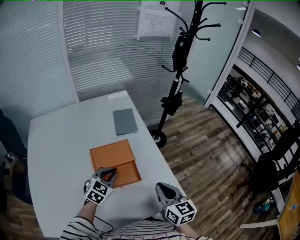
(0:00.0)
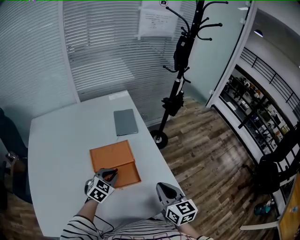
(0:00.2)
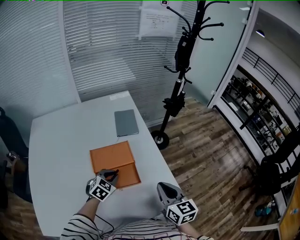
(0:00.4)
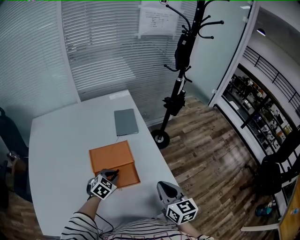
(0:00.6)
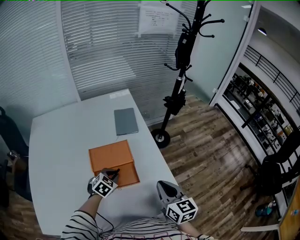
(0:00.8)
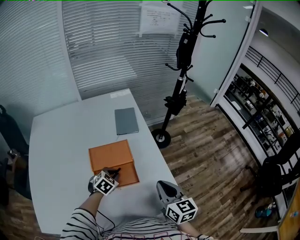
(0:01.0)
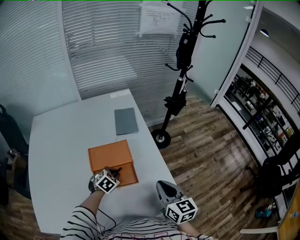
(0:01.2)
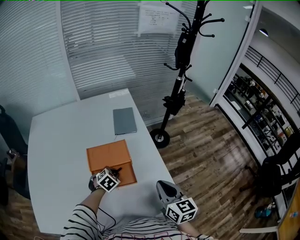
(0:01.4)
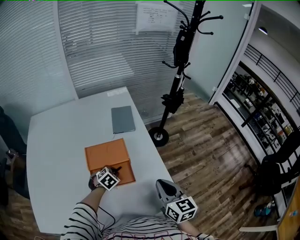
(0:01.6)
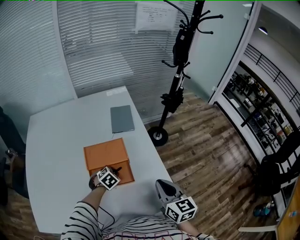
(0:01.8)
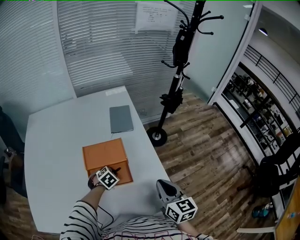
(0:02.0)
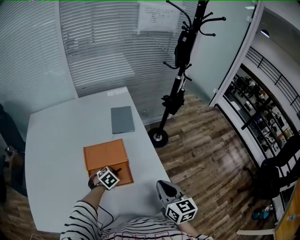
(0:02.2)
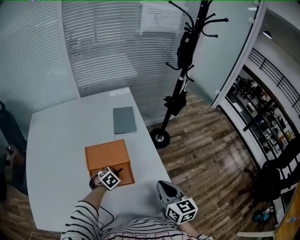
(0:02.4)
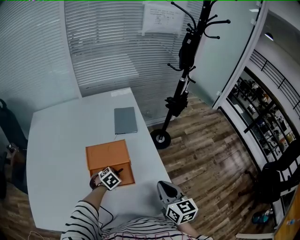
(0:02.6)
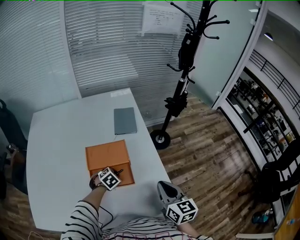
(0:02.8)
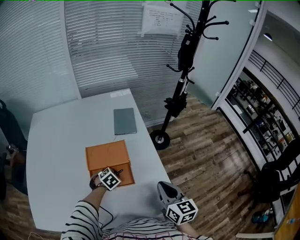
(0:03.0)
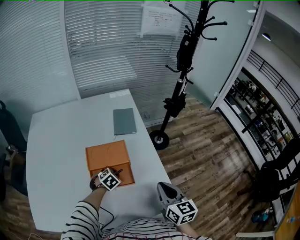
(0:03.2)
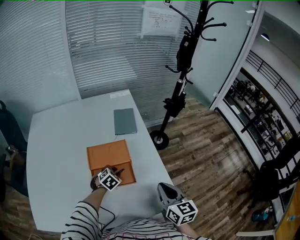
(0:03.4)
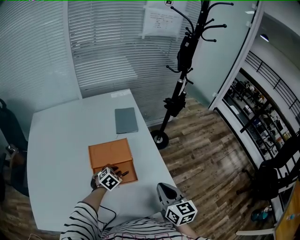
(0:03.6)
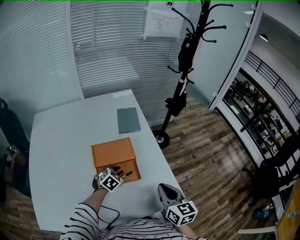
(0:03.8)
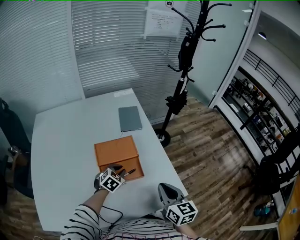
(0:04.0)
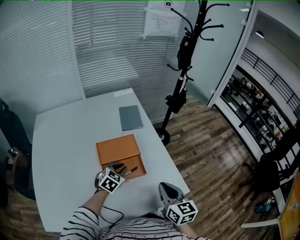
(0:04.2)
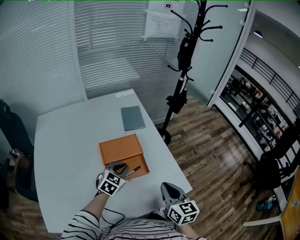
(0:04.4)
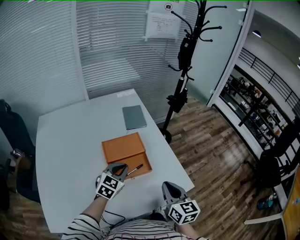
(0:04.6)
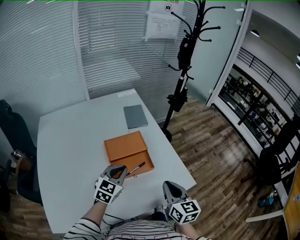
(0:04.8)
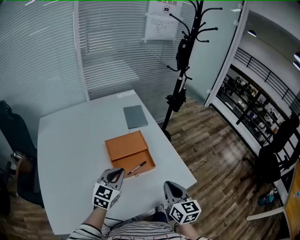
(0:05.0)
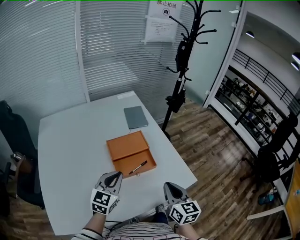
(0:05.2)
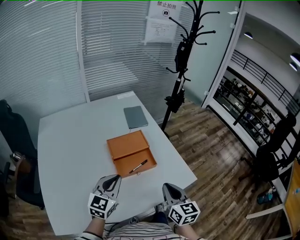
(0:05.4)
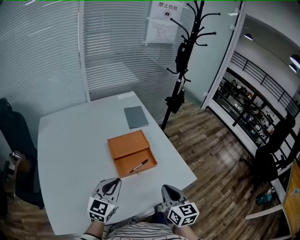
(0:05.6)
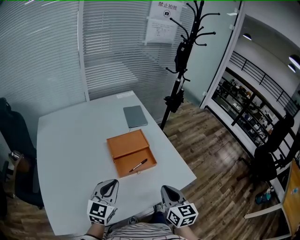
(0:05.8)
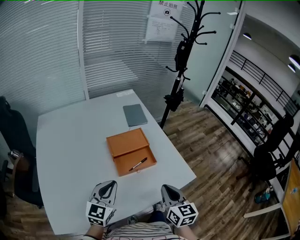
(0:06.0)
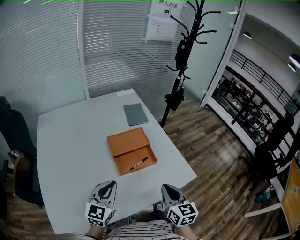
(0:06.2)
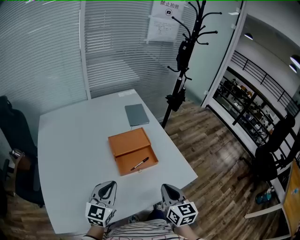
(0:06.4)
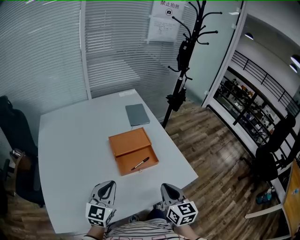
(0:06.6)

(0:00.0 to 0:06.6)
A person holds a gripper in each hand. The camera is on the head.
0:00.0 - 0:01.6: The right gripper shifts by roughly 5 cm, while the left gripper shifts approximately 15 cm downward, and turns by some 30 degrees.
0:01.6 - 0:03.2: There are only small adjustments of the grippers.
0:03.2 - 0:05.0: The right gripper heads backward and to the left, covering roughly 15 cm, while the left gripper shifts some 25 cm upward and backward, and angles its fingers upward, by approximately 50 degrees.
0:05.0 - 0:06.6: The left gripper travels backward and to the left by roughly 10 cm. Meanwhile the right gripper moves roughly 5 cm.

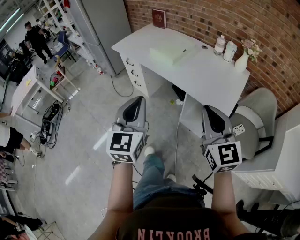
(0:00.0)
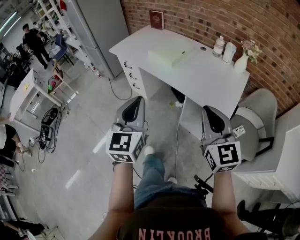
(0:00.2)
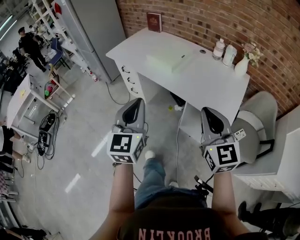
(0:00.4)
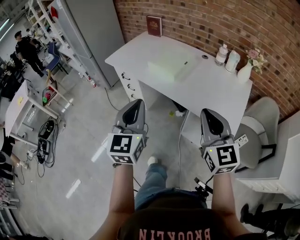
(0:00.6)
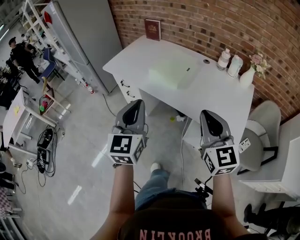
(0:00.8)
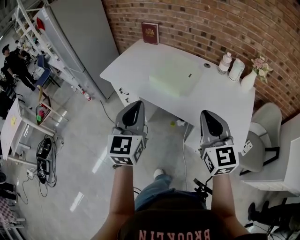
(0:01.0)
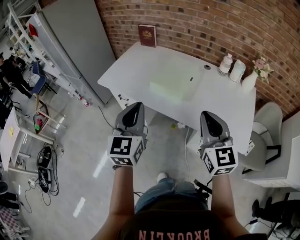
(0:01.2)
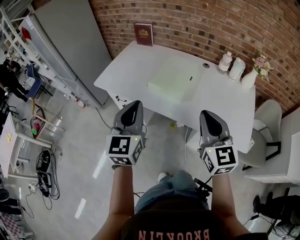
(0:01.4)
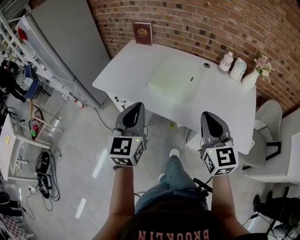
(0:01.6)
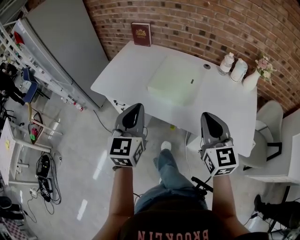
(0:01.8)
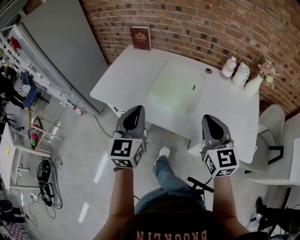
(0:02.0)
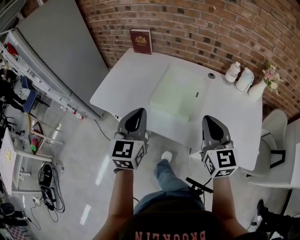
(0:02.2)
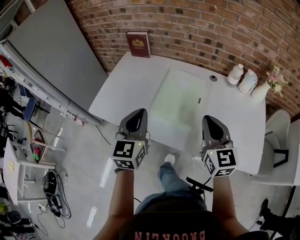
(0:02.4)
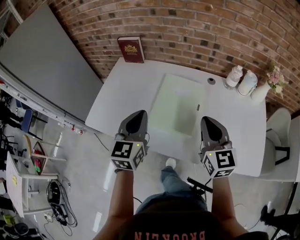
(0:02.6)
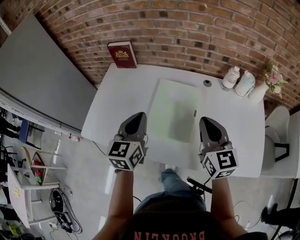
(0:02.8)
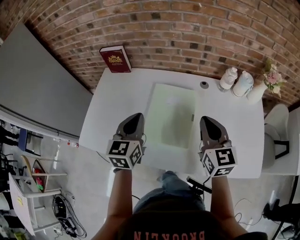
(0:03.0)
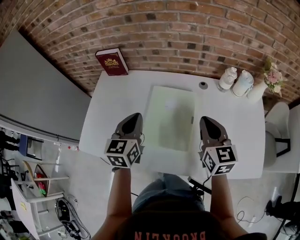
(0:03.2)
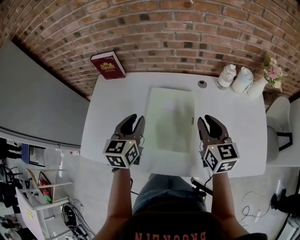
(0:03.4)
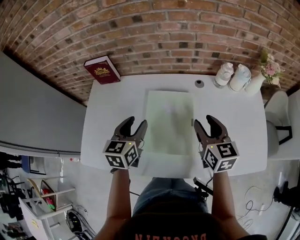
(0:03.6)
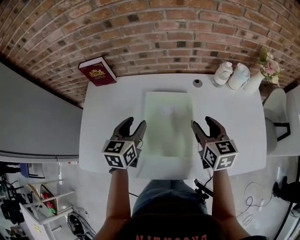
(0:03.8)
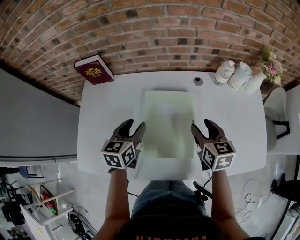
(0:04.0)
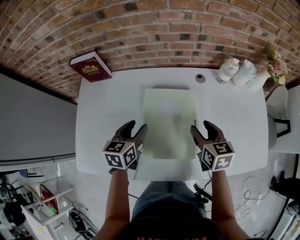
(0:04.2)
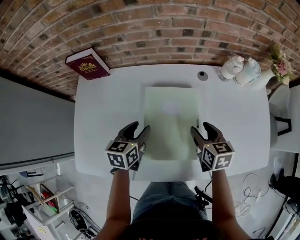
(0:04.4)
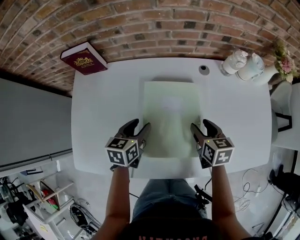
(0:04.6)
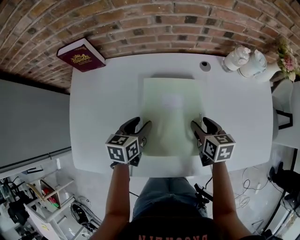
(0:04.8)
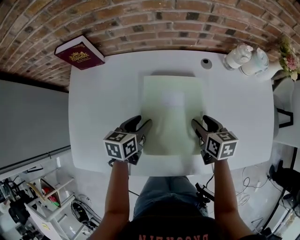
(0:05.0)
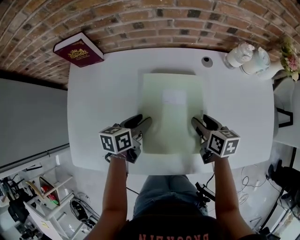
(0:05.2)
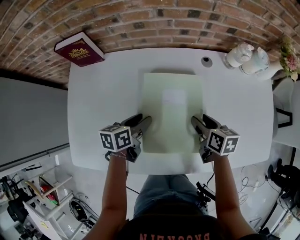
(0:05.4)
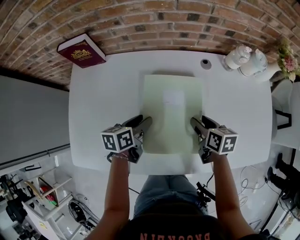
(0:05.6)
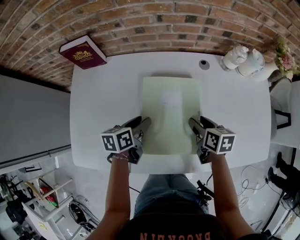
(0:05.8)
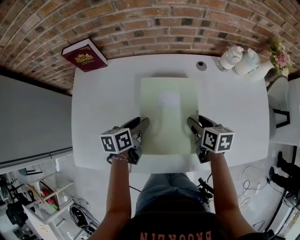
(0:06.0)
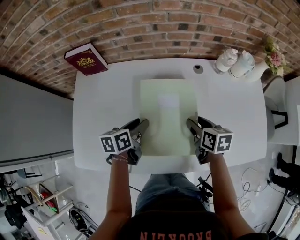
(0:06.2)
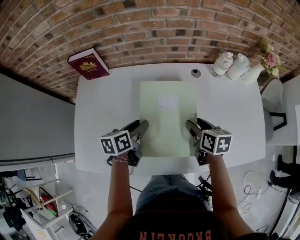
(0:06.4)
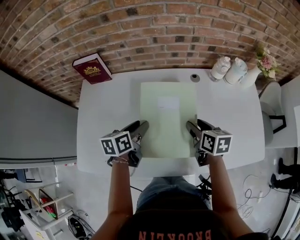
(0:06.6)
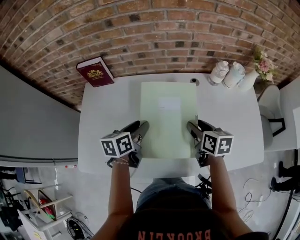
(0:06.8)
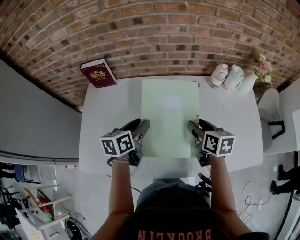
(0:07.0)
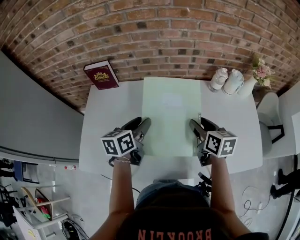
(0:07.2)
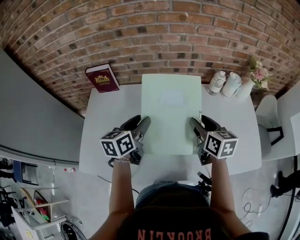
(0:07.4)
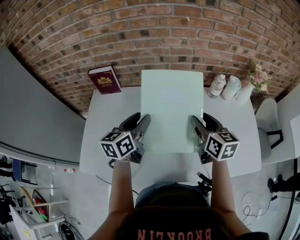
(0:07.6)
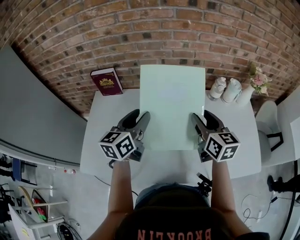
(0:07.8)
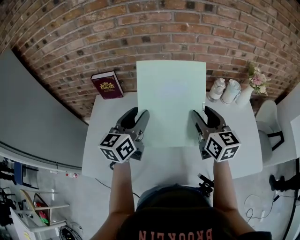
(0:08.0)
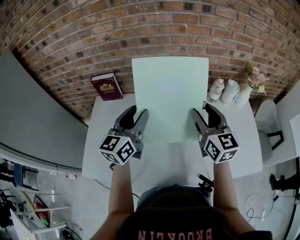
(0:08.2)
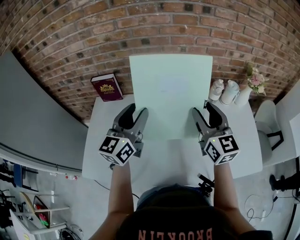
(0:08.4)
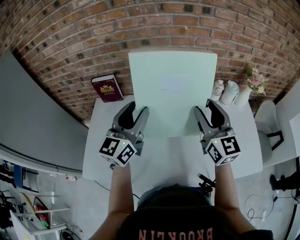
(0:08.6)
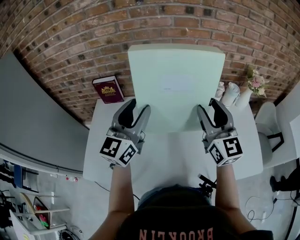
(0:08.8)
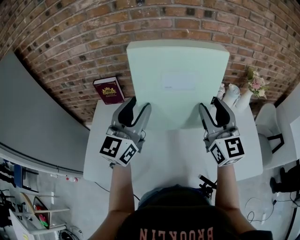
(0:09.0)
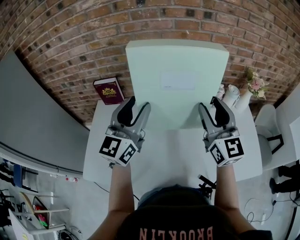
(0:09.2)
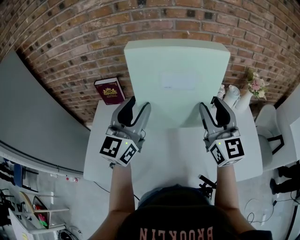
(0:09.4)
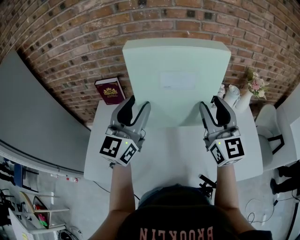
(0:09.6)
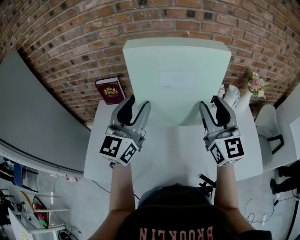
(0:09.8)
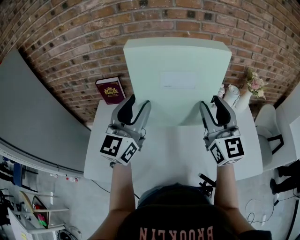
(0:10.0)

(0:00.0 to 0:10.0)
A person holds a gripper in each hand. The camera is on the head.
0:00.0 - 0:01.4: The two grippers go some 35 cm forward and to the left.
0:01.4 - 0:02.8: Both grippers travel together forward, some 30 cm. The left gripper changes its angle by roughly 20 degrees.
0:02.8 - 0:04.2: Both grippers travel together downward and forward, approximately 20 cm. The left gripper changes its angle by some 30 degrees, and opens up; the right gripper changes its angle by about 30 degrees, and opens.
0:04.2 - 0:05.8: Both grippers move downward, some 10 cm. The right gripper turns by roughly 20 degrees. Meanwhile the left gripper turns by some 30 degrees.
0:05.8 - 0:07.2: The two grippers go roughly 15 cm upward.
0:07.2 - 0:08.6: The grippers both shift upward by some 15 cm. The right gripper points its fingers some 30 degrees further upward. The left gripper tilts its fingers about 30 degrees upward.
0:08.6 - 0:10.0: The grippers both shift upward by some 5 cm.

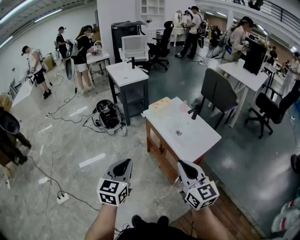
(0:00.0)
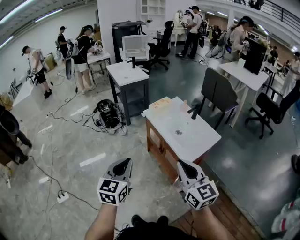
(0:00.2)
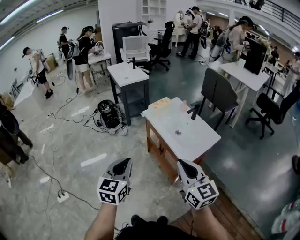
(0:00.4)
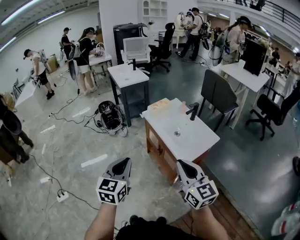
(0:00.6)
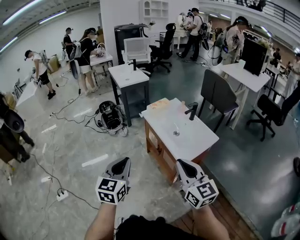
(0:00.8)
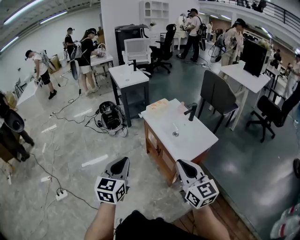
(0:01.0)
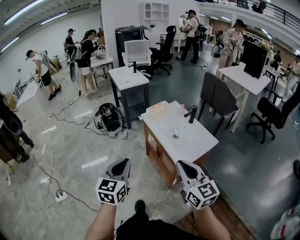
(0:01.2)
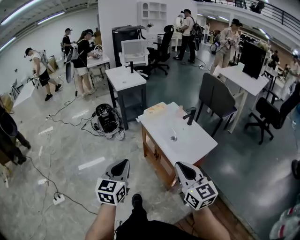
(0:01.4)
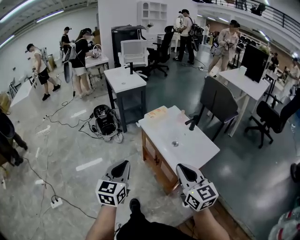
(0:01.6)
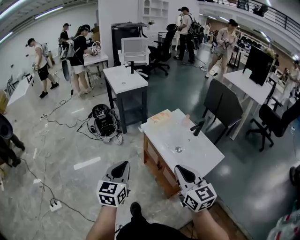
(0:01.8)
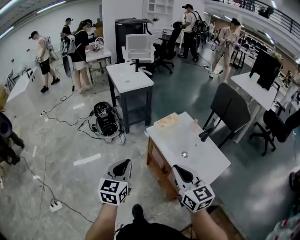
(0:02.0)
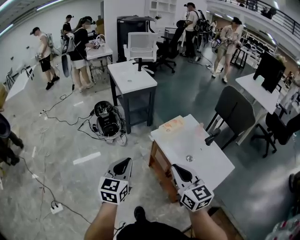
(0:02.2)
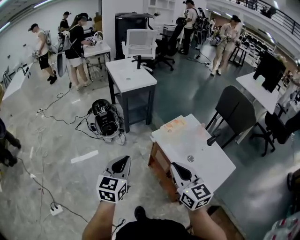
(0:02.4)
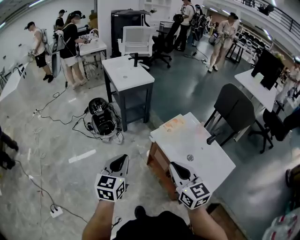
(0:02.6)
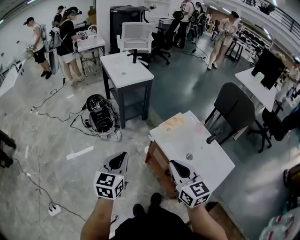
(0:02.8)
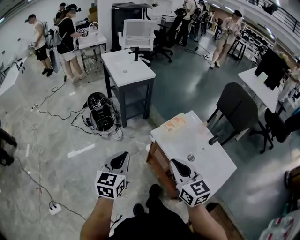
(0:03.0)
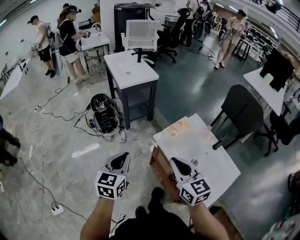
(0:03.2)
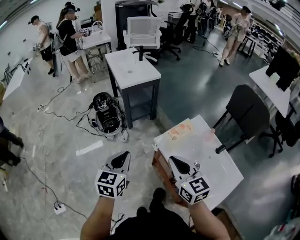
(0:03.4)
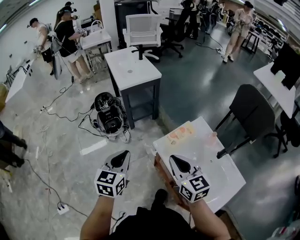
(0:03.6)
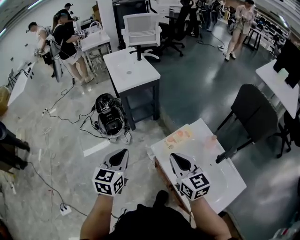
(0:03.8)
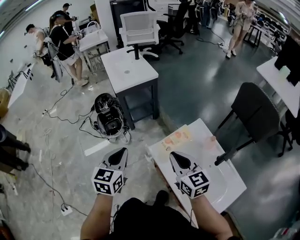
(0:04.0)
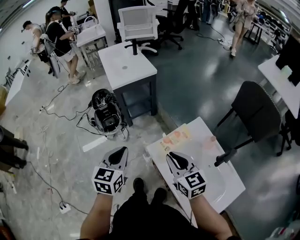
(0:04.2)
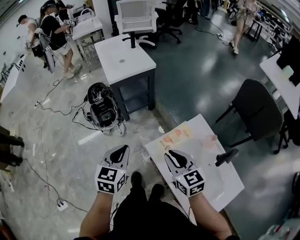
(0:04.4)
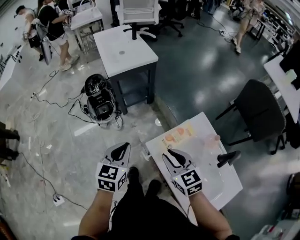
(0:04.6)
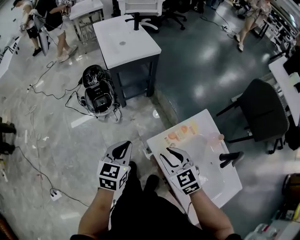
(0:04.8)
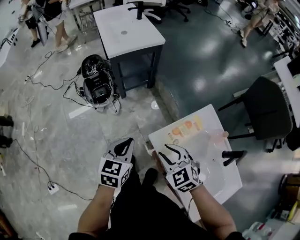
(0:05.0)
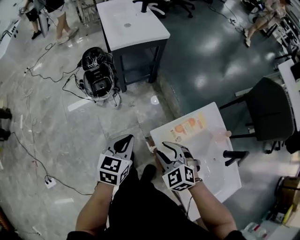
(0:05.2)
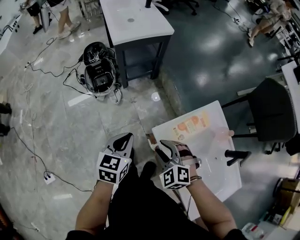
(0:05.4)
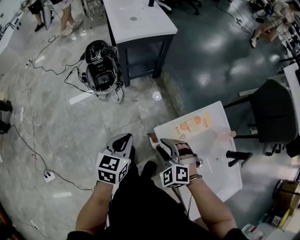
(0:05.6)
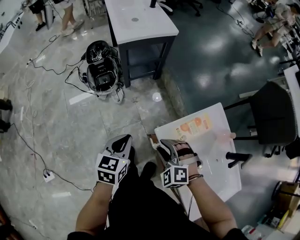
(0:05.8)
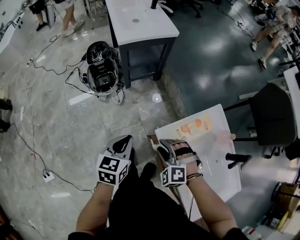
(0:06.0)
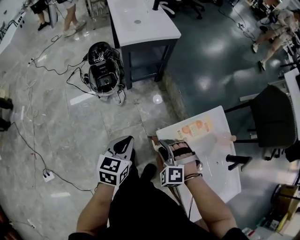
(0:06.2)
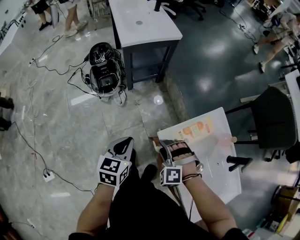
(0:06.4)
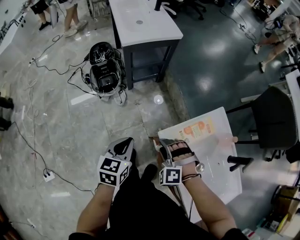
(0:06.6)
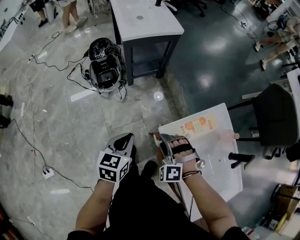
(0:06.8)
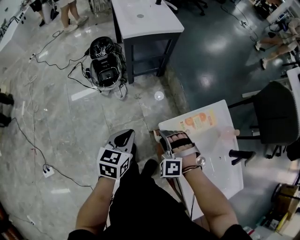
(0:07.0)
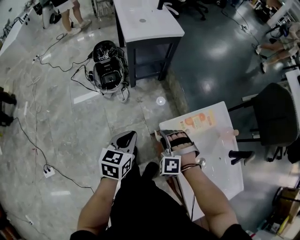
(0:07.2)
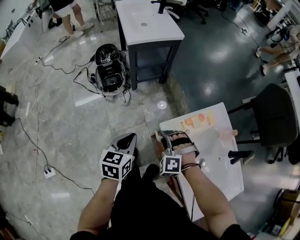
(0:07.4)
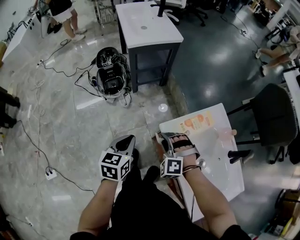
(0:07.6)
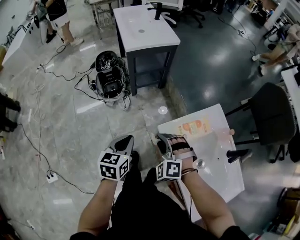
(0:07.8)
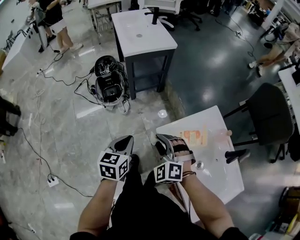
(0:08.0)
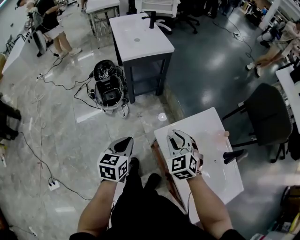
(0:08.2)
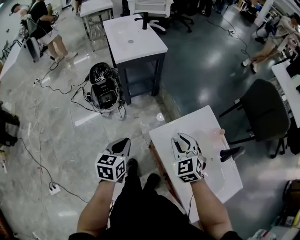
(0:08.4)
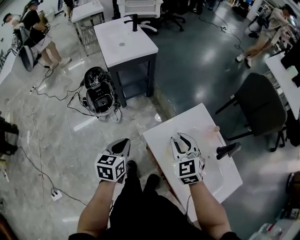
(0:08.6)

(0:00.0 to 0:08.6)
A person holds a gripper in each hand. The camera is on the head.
0:00.0 - 0:01.4: Both grippers move to the right, about 5 cm.
0:01.4 - 0:02.8: The two grippers go about 40 cm forward and to the left.
0:02.8 - 0:04.4: The left gripper goes roughly 25 cm forward and to the right. The right gripper heads forward and downward, covering some 30 cm.
0:04.4 - 0:05.8: The left gripper is displaced downward by some 15 cm. Meanwhile the right gripper is displaced downward and to the left by approximately 20 cm, rotates around the line of its fingers by approximately 60 degrees, counterclockwise from behind, and opens its fingers.
0:05.8 - 0:07.2: The right gripper changes its angle by roughly 20 degrees.
0:07.2 - 0:08.6: The left gripper ends up roughly 5 cm from where it was. Meanwhile the right gripper moves upward and to the right, about 20 cm, and rotates around the line of its fingers by roughly 60 degrees, clockwise from behind.
